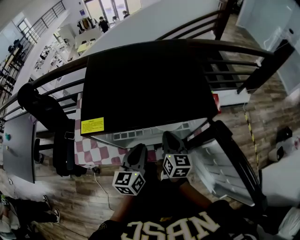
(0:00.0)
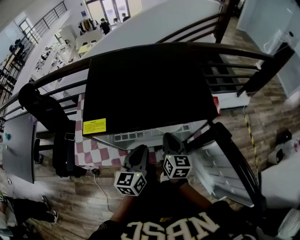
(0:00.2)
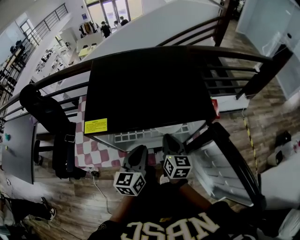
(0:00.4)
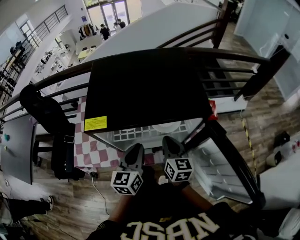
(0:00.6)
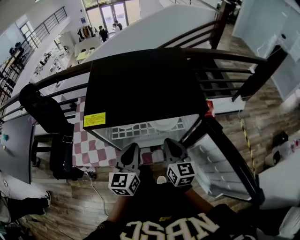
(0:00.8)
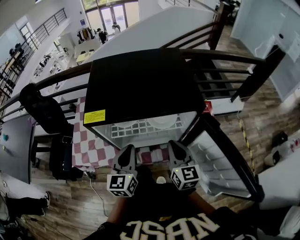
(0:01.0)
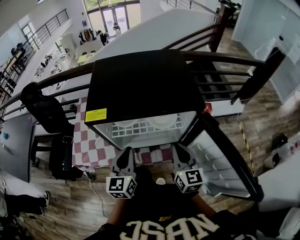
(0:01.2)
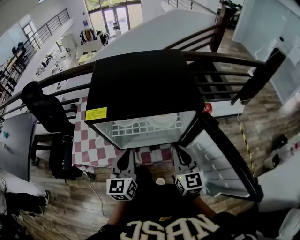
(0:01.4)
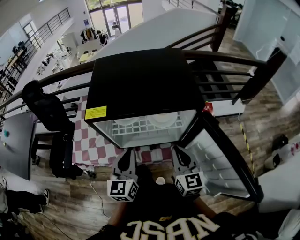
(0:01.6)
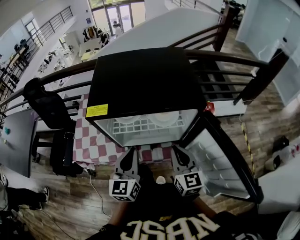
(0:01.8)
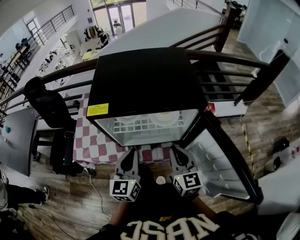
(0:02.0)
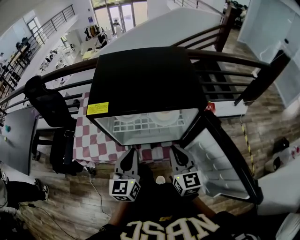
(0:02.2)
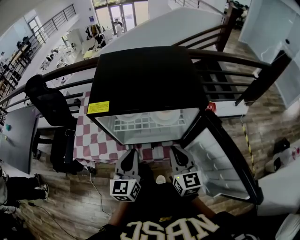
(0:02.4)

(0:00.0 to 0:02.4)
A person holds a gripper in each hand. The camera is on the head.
0:00.0 - 0:01.2: The right gripper moves backward and upward, about 10 cm. The left gripper shifts by some 5 cm.
0:01.2 - 0:02.4: The grippers make only small movements.

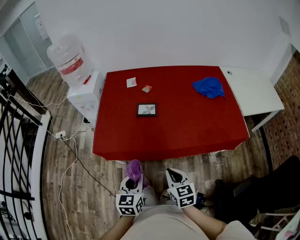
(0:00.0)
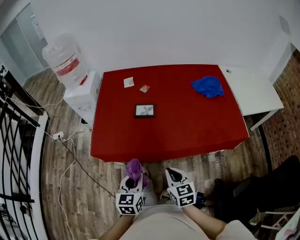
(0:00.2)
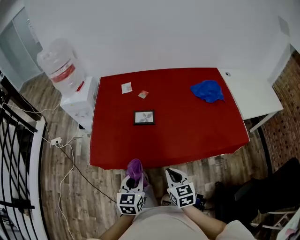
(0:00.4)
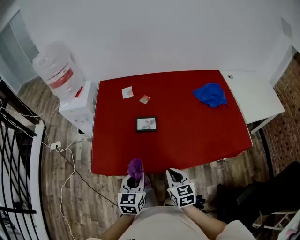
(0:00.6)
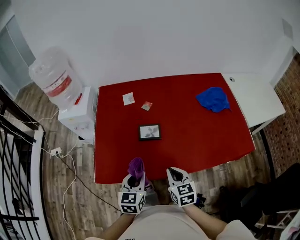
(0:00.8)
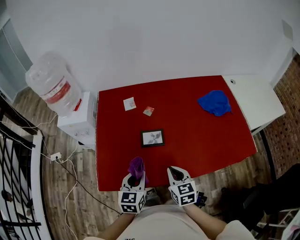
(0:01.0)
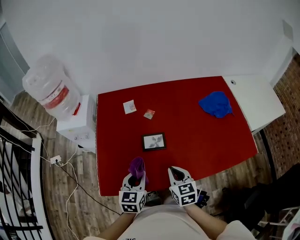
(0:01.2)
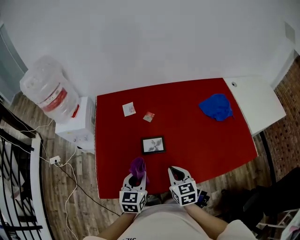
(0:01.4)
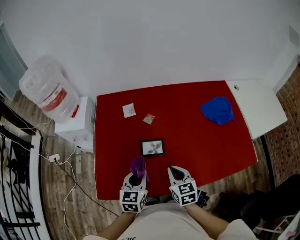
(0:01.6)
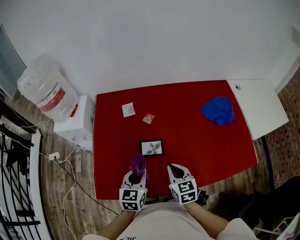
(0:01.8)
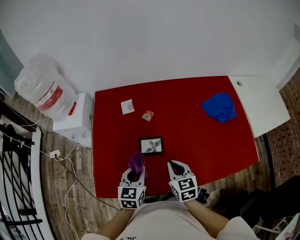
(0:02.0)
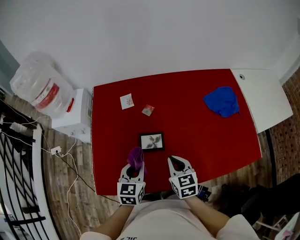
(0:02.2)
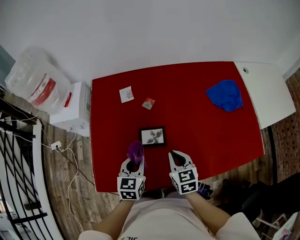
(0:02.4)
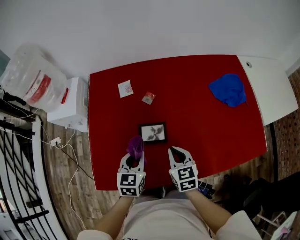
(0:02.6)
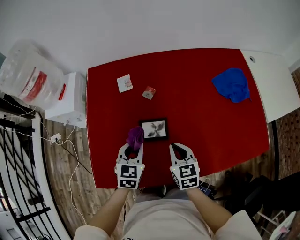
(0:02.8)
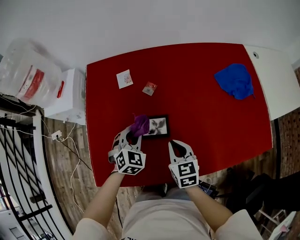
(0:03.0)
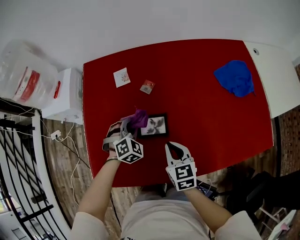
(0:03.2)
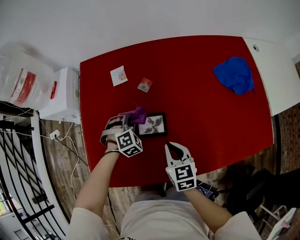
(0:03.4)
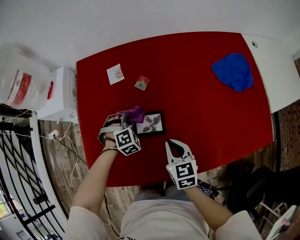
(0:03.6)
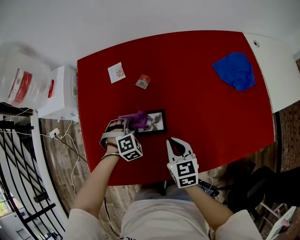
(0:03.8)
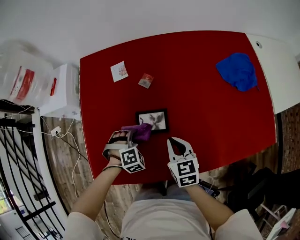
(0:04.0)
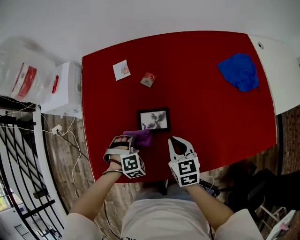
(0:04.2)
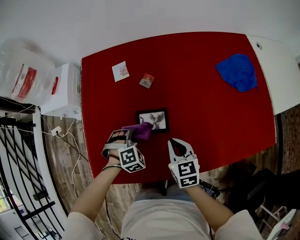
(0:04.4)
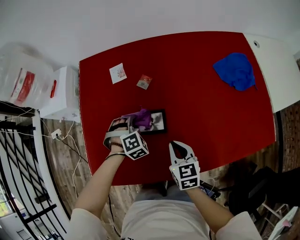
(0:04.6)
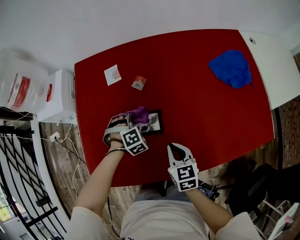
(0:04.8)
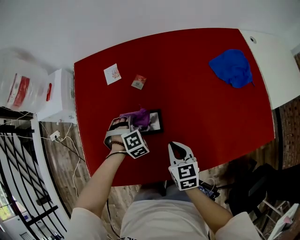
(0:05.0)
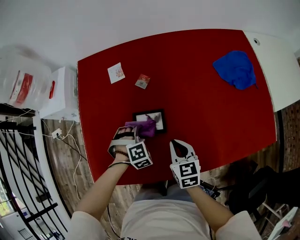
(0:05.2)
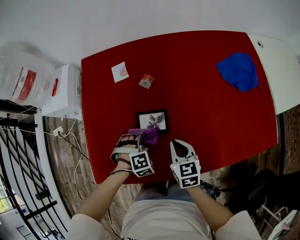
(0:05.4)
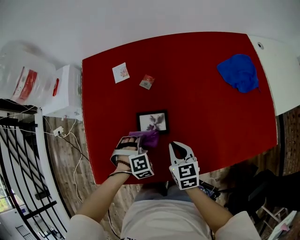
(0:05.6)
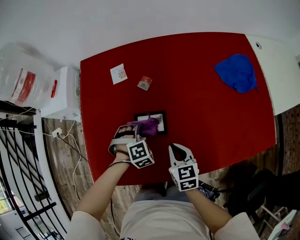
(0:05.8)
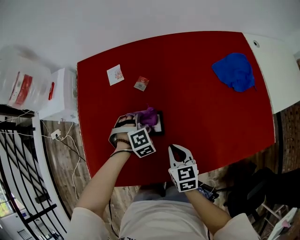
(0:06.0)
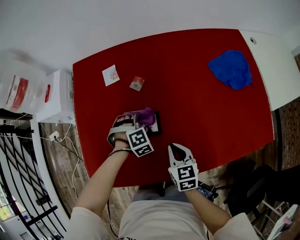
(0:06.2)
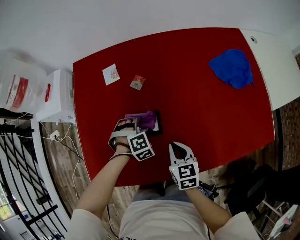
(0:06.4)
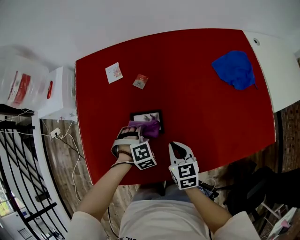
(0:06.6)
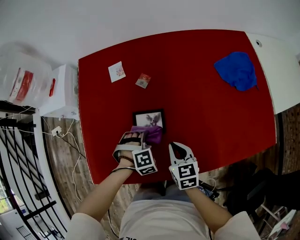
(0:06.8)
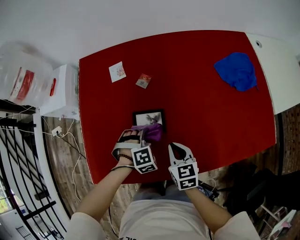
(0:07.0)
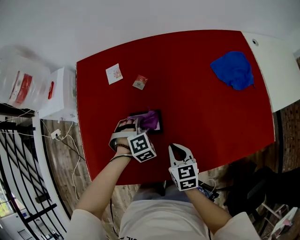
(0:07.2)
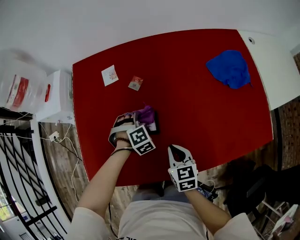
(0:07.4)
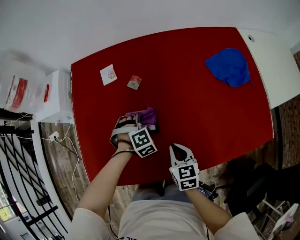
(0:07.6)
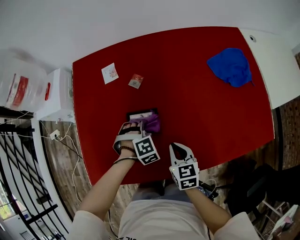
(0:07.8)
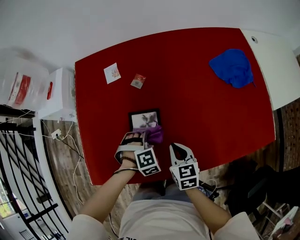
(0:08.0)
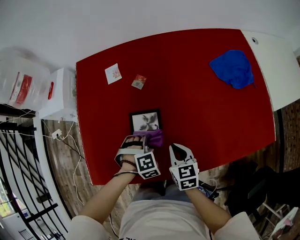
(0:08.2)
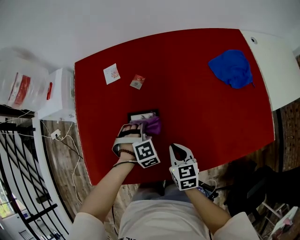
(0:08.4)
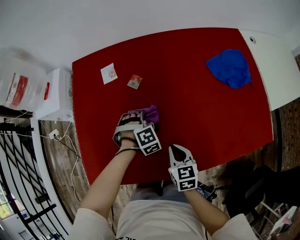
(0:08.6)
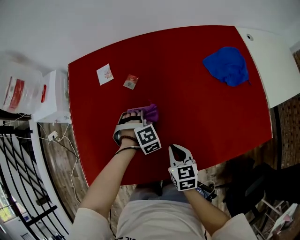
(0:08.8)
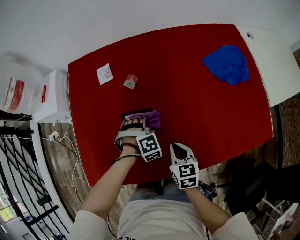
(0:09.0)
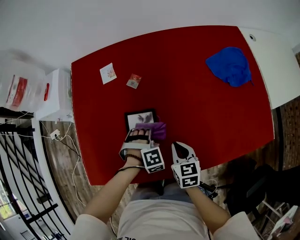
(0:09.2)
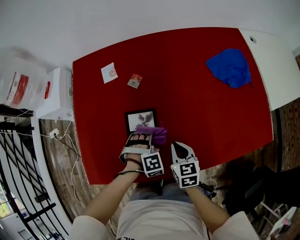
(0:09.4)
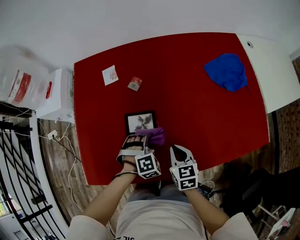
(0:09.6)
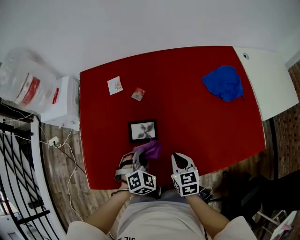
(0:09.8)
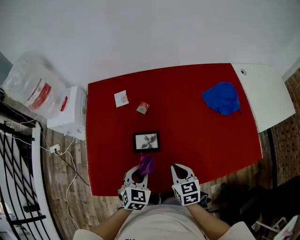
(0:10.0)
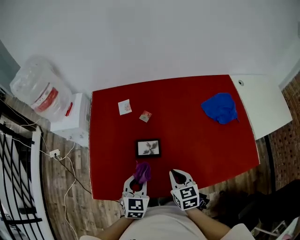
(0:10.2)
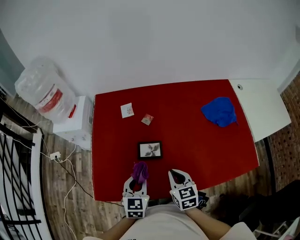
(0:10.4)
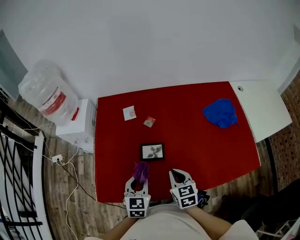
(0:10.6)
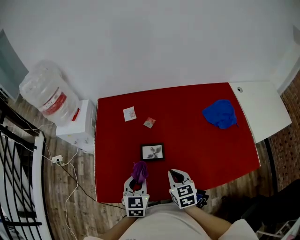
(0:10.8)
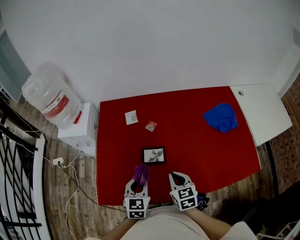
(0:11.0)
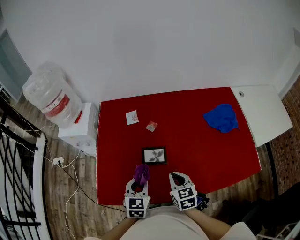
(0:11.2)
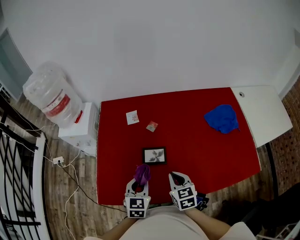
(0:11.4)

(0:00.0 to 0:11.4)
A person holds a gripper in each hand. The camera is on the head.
0:00.0 - 0:01.4: The grippers both shift forward by about 30 cm.
0:01.4 - 0:02.8: Both grippers travel together forward and downward, approximately 15 cm.
0:02.8 - 0:04.2: The left gripper goes about 15 cm downward, and twists about 60 degrees clockwise, seen from behind.
0:04.2 - 0:05.6: The left gripper moves some 10 cm forward and comes back.
0:05.6 - 0:07.2: The left gripper moves forward and backward over about 10 cm, changing direction 2 times.
0:07.2 - 0:08.6: The left gripper goes backward and returns, some 10 cm each way.
0:08.6 - 0:10.0: The left gripper moves backward and upward, approximately 20 cm, and rolls counterclockwise, seen from behind, by roughly 50 degrees; the right gripper shifts approximately 10 cm upward.
0:10.0 - 0:11.4: The two grippers go about 5 cm upward.

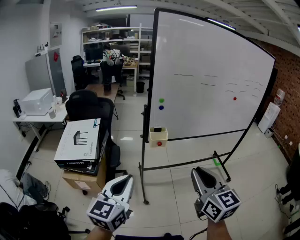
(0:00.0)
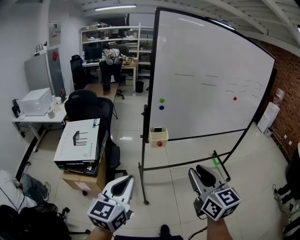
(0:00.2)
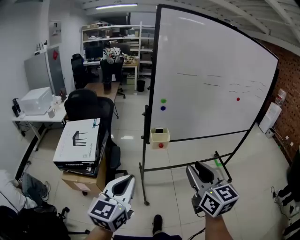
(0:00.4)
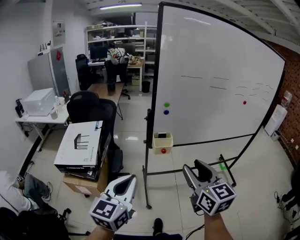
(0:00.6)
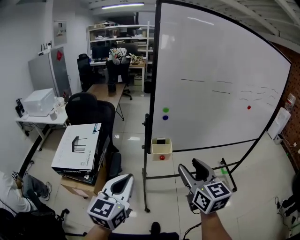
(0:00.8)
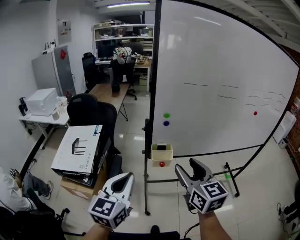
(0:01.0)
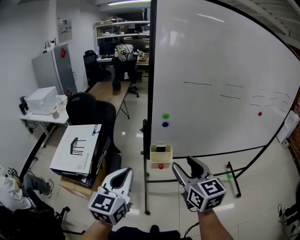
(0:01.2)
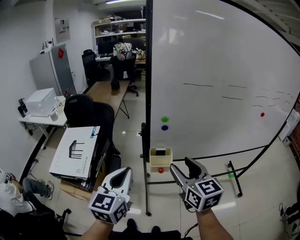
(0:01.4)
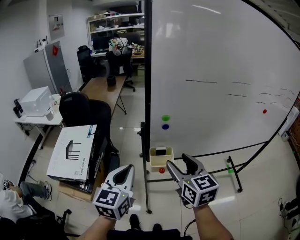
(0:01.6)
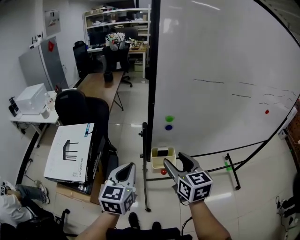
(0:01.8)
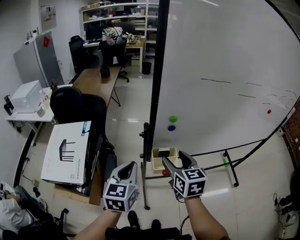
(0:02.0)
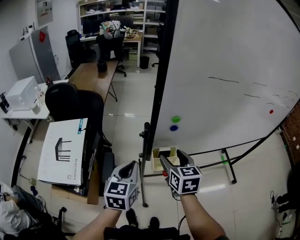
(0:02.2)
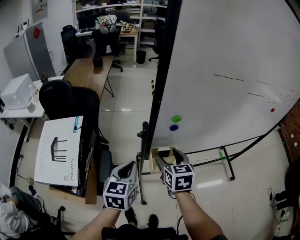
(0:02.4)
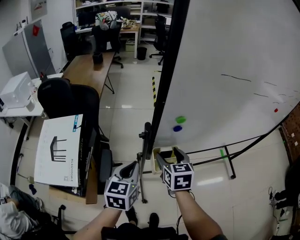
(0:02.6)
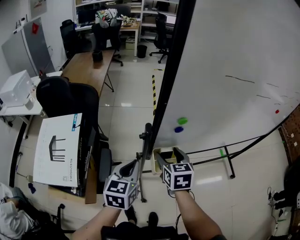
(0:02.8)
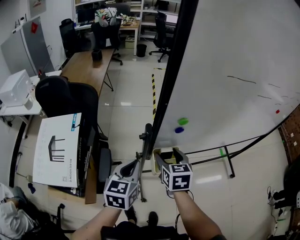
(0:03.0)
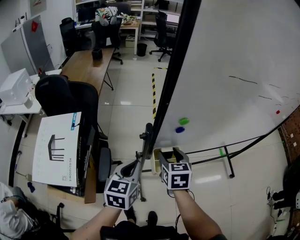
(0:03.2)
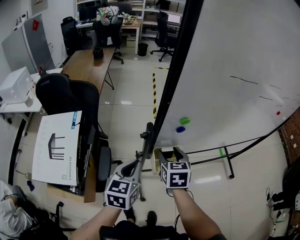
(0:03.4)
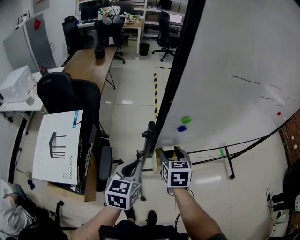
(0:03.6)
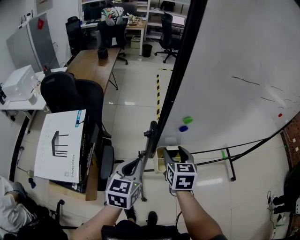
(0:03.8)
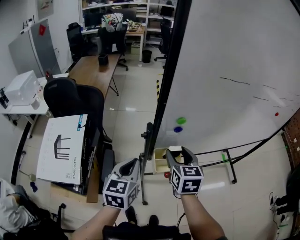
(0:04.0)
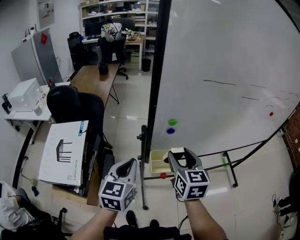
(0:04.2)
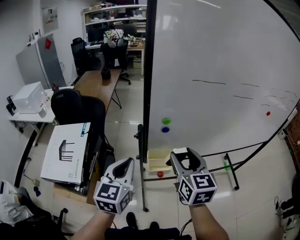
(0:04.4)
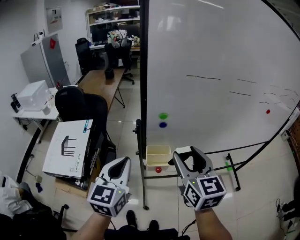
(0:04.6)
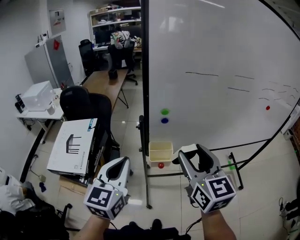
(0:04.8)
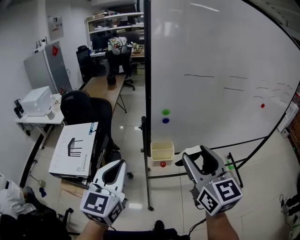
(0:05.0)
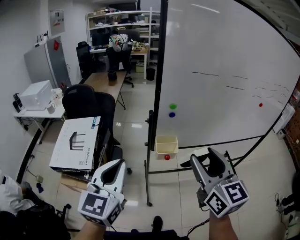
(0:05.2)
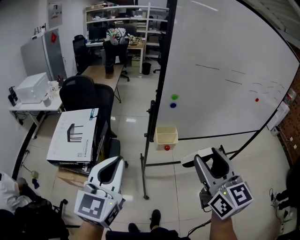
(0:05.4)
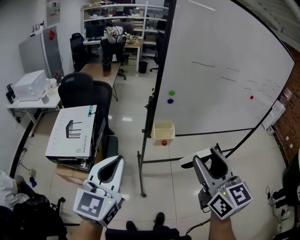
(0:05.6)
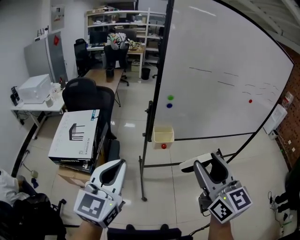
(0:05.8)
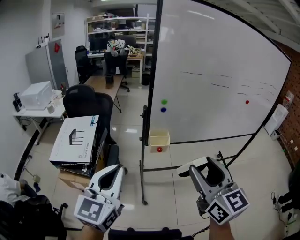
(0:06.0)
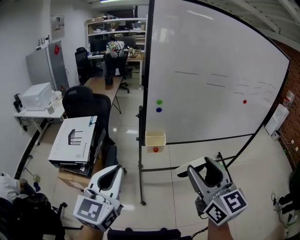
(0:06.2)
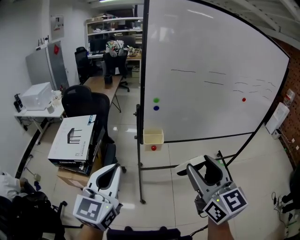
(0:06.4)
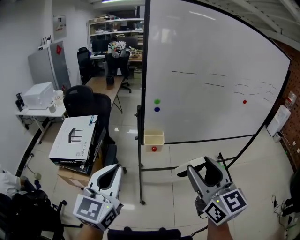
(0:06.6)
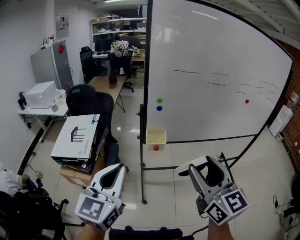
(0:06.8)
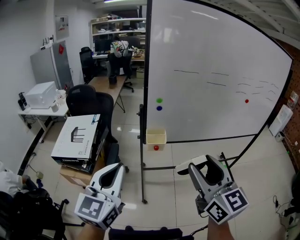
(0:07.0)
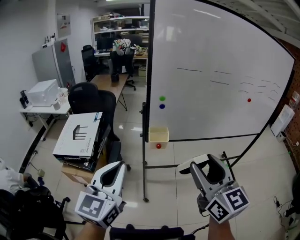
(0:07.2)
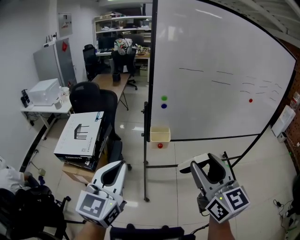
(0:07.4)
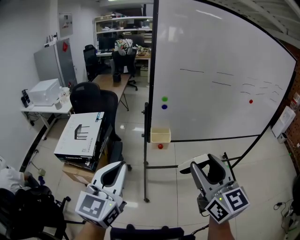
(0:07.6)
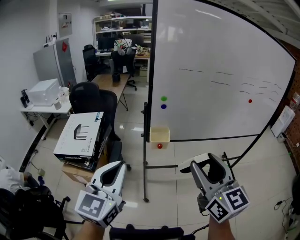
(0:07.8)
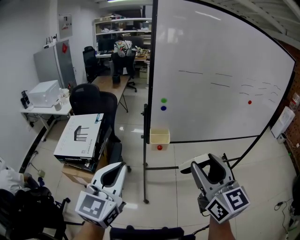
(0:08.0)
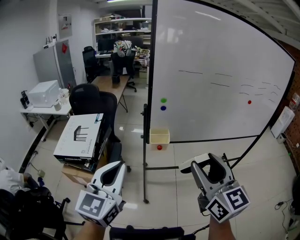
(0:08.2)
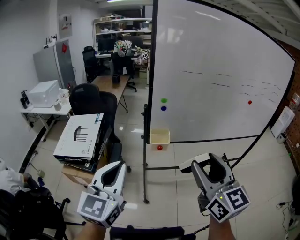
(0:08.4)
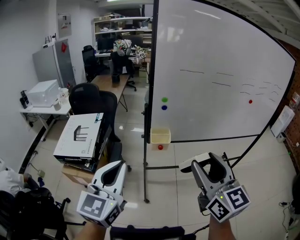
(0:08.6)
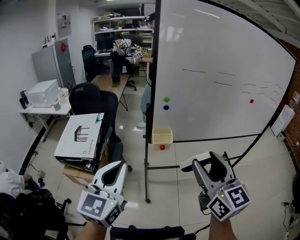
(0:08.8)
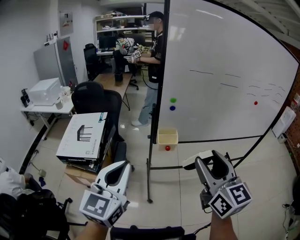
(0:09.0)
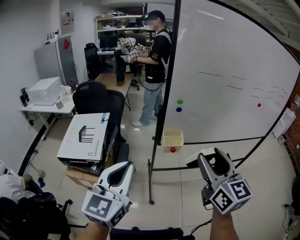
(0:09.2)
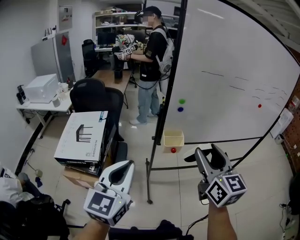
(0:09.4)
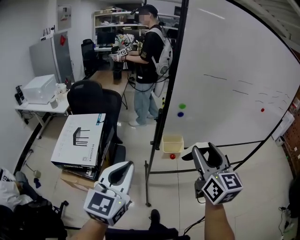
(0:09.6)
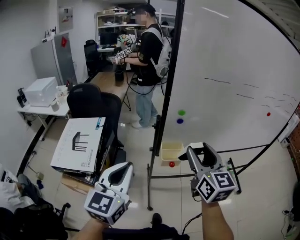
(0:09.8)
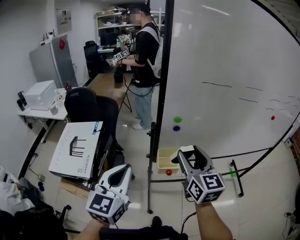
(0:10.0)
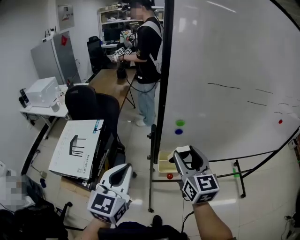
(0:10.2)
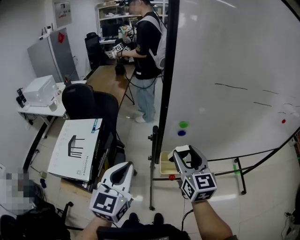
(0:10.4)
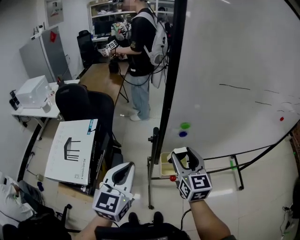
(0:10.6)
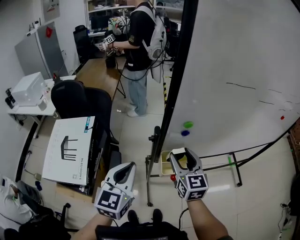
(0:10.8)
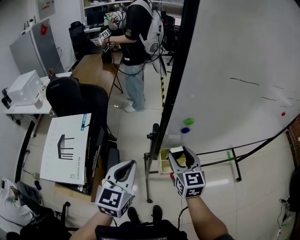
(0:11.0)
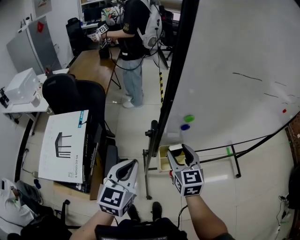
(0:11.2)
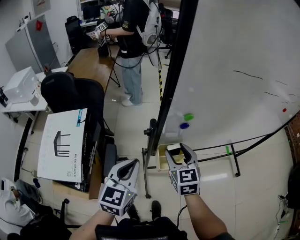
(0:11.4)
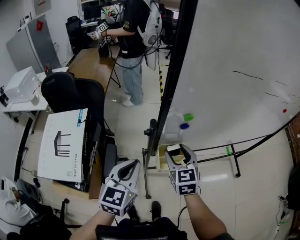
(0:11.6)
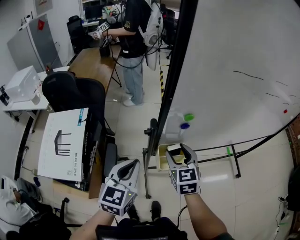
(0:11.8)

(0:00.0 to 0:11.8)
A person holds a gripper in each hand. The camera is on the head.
0:00.0 - 0:01.4: The two grippers go some 30 cm forward. The right gripper opens up.
0:01.4 - 0:03.0: Both grippers move forward and downward, about 30 cm. The left gripper rotates approximately 20 degrees; the right gripper turns by about 30 degrees.
0:03.0 - 0:04.4: The left gripper moves upward and backward, roughly 15 cm; the right gripper is displaced upward, backward and to the right by some 20 cm, and changes its angle by about 20 degrees.
0:04.4 - 0:06.0: Both grippers travel together backward, about 30 cm.
0:06.0 - 0:08.8: The grippers stay close to where they were, moving slightly.
0:08.8 - 0:10.4: The two grippers go some 35 cm forward.
0:10.4 - 0:11.8: The right gripper travels downward by about 15 cm, and rotates some 20 degrees, while the left gripper moves downward and forward, about 10 cm.
